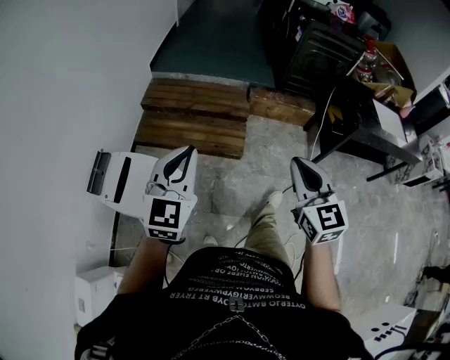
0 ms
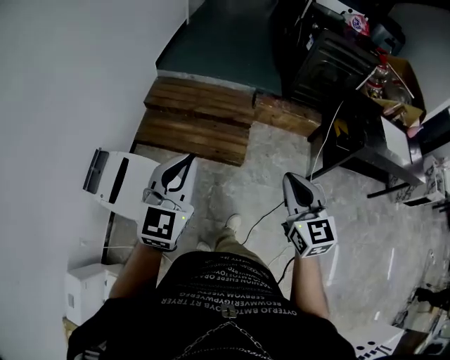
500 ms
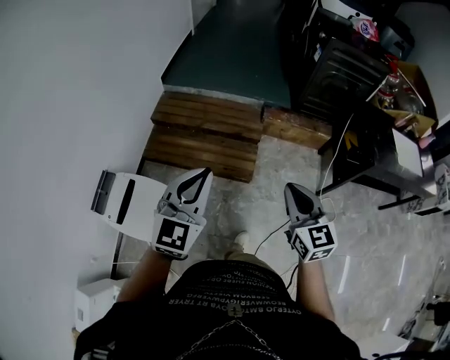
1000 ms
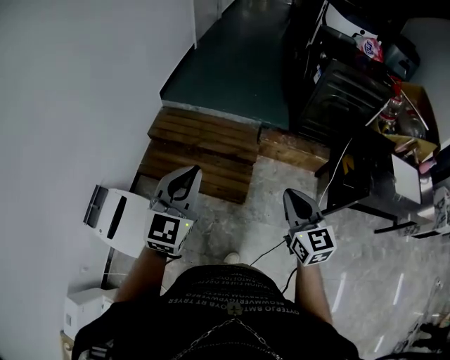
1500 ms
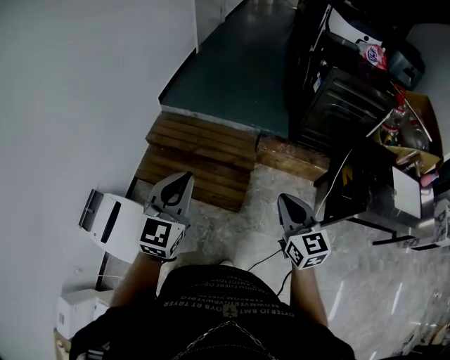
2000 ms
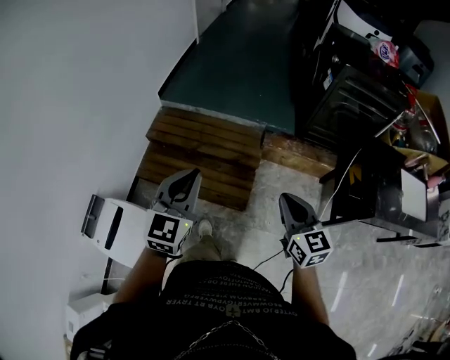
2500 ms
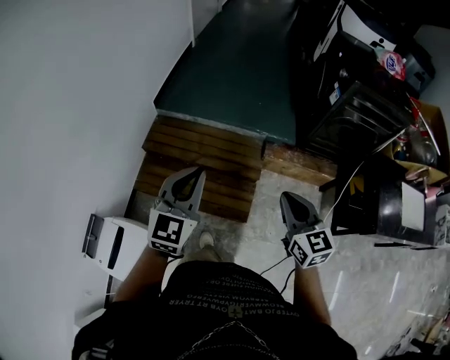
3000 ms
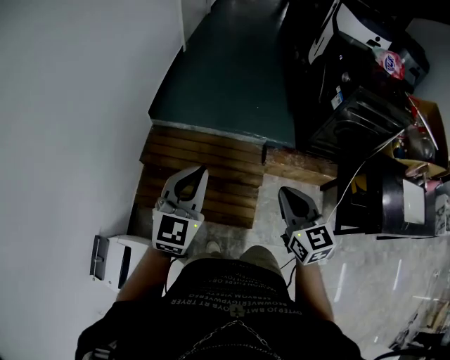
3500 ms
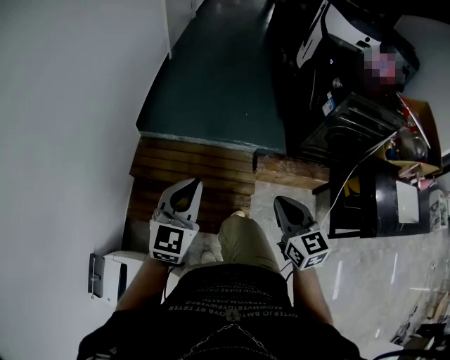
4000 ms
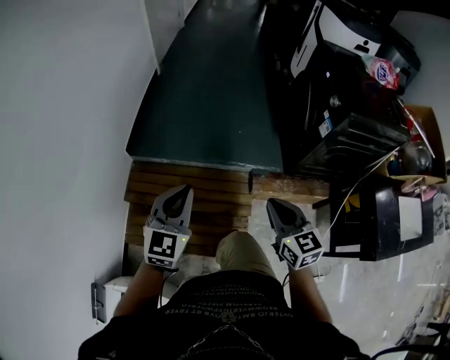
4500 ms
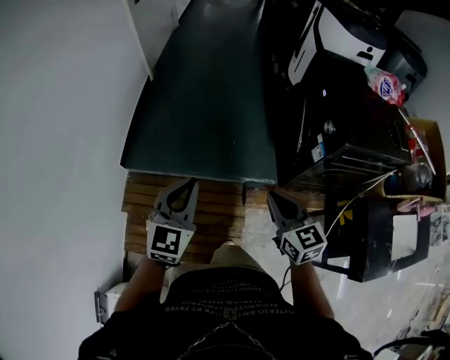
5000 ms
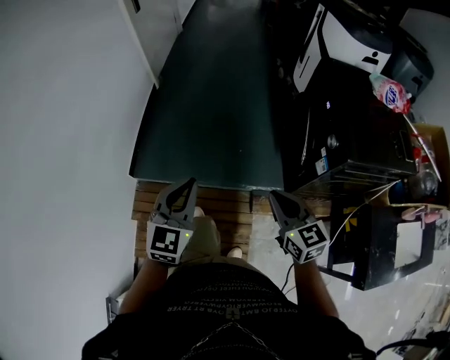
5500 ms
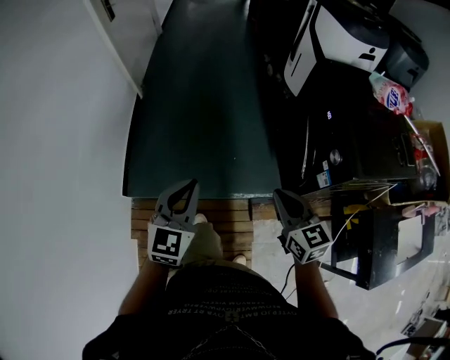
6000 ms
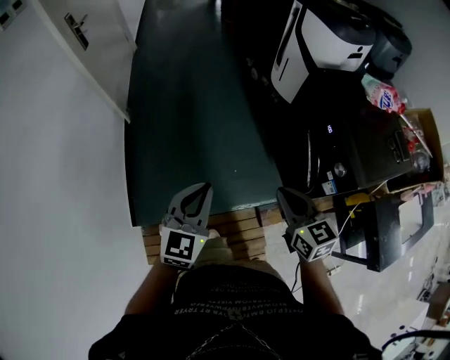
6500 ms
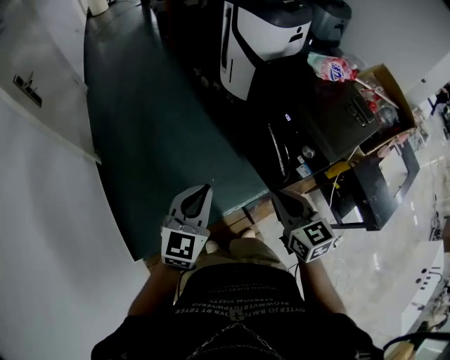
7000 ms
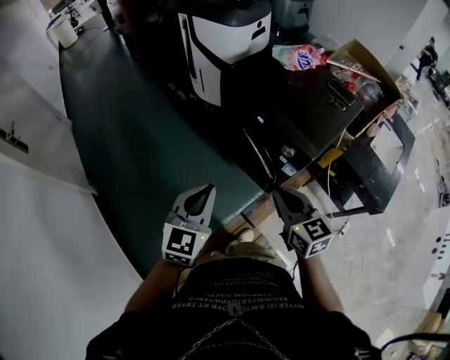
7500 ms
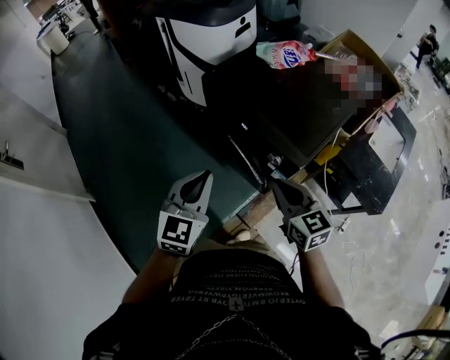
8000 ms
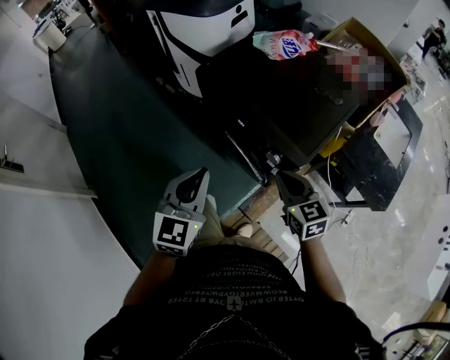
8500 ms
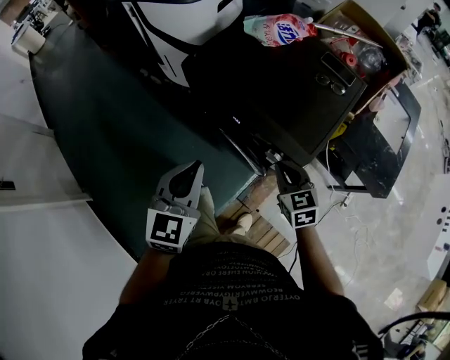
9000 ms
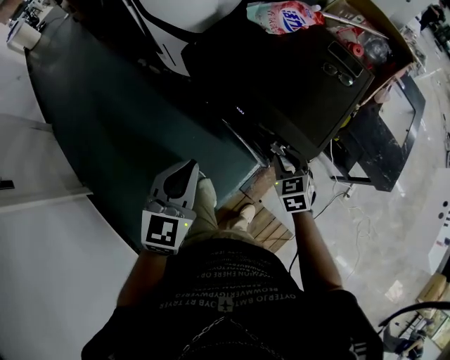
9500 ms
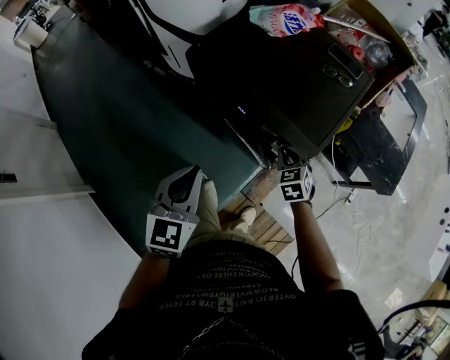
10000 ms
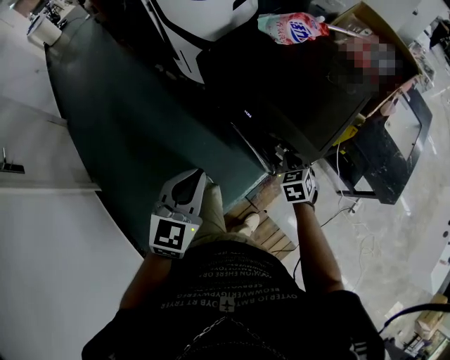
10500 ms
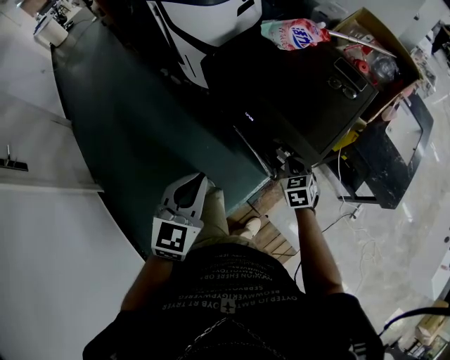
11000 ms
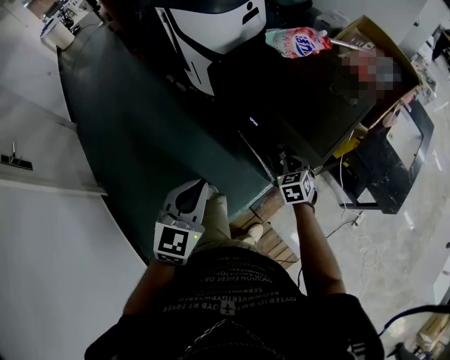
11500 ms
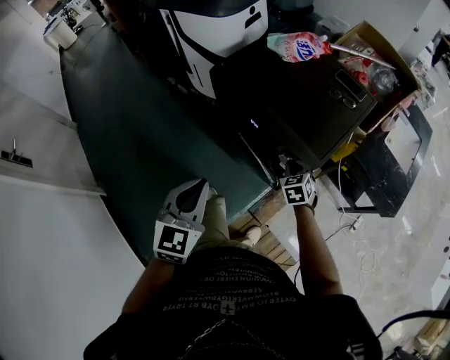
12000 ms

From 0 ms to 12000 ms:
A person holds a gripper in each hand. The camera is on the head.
From 0 ms to 2000 ms: Both grippers move forward and to the right, approximately 35 cm.
From 2000 ms to 4000 ms: The left gripper moves forward, roughly 35 cm, while the right gripper moves forward and to the left, approximately 35 cm.
From 4000 ms to 6000 ms: The pair of grippers is taken forward, approximately 50 cm.
From 6000 ms to 8000 ms: The right gripper shifts by approximately 25 cm, and turns by roughly 40 degrees, while the left gripper ends up some 35 cm from where it was, and turns by about 40 degrees.
From 8000 ms to 10000 ms: The left gripper is displaced forward and downward by roughly 10 cm, while the right gripper shifts some 25 cm downward and forward, and turns by about 40 degrees.
From 10000 ms to 12000 ms: The left gripper shifts approximately 5 cm backward.

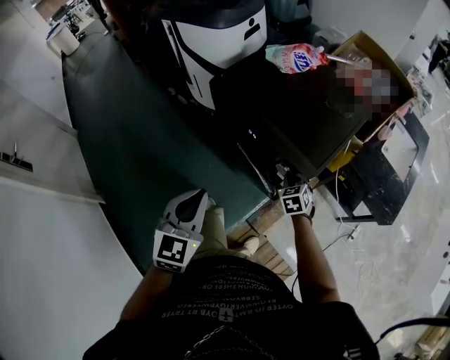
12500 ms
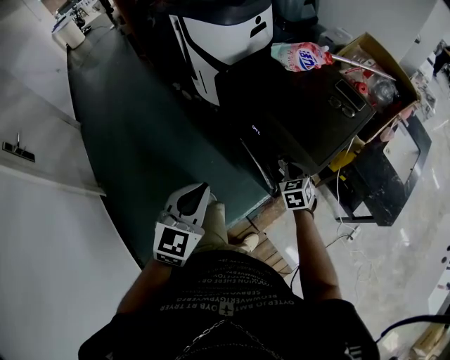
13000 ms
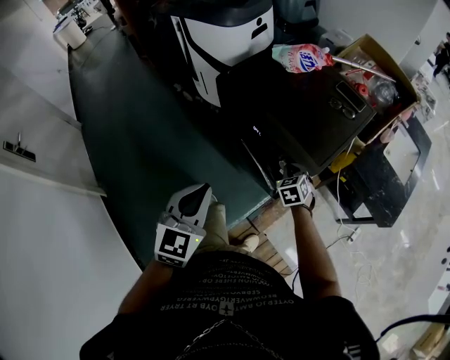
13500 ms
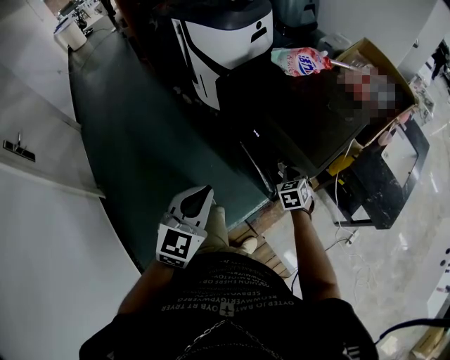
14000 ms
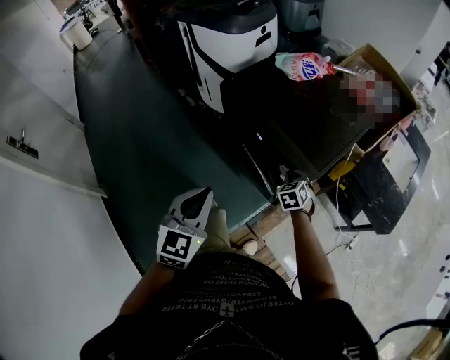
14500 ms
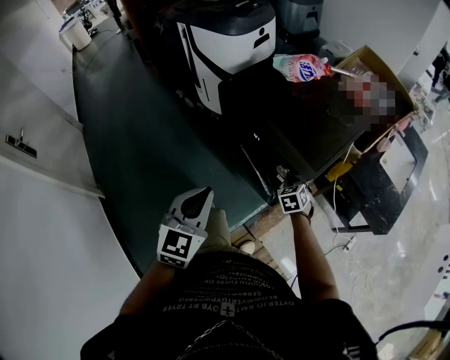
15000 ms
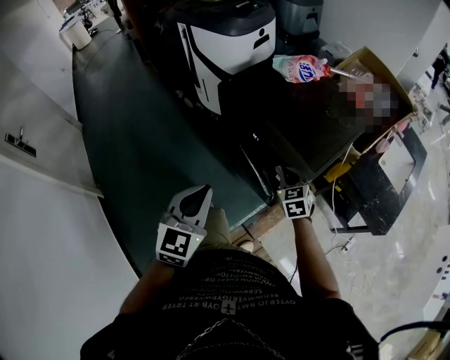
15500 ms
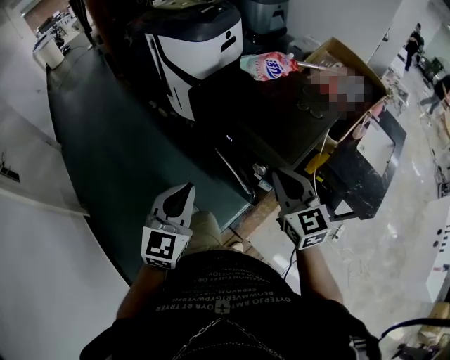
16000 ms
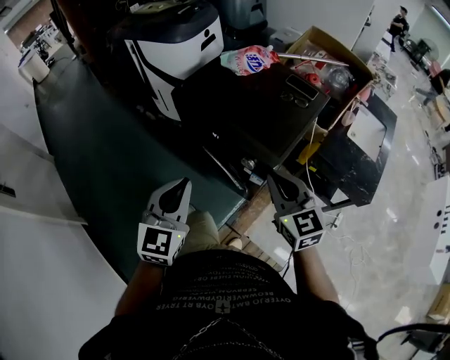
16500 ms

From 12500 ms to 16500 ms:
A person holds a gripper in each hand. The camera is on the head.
From 12500 ms to 14500 ms: The grippers stay close to where they were, moving slightly.
From 14500 ms to 16500 ms: The left gripper shifts some 5 cm to the right. The right gripper goes approximately 30 cm upward and backward, and tips its fingers upward by roughly 30 degrees.

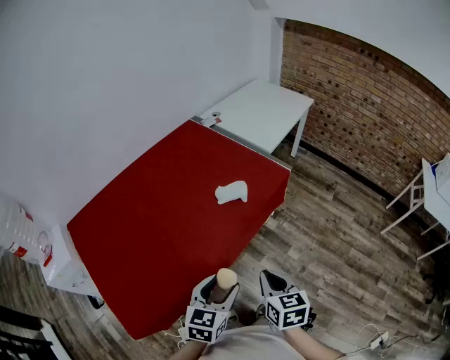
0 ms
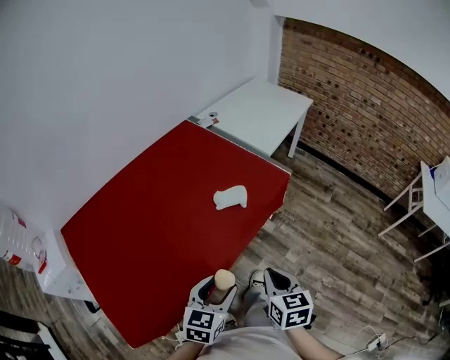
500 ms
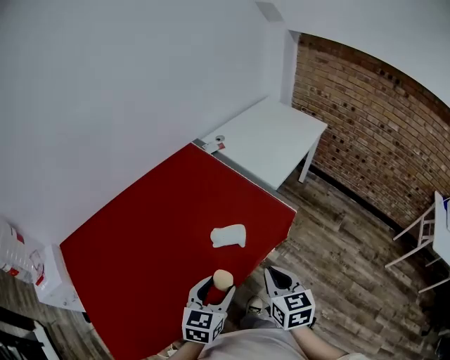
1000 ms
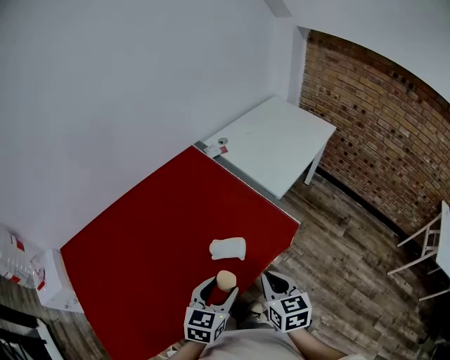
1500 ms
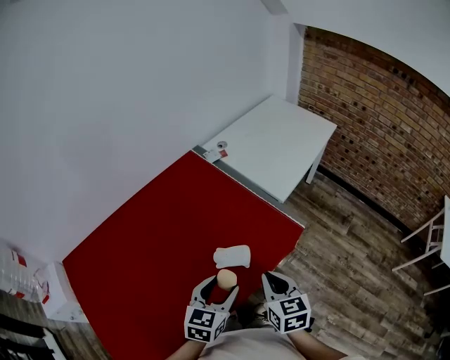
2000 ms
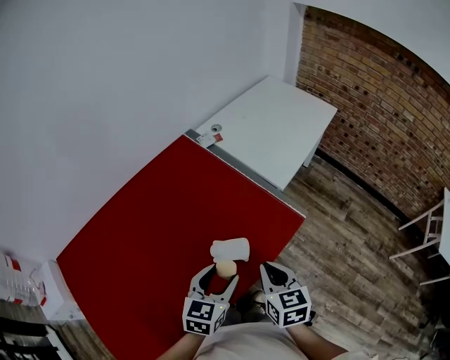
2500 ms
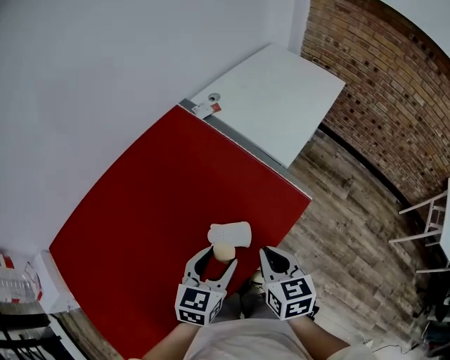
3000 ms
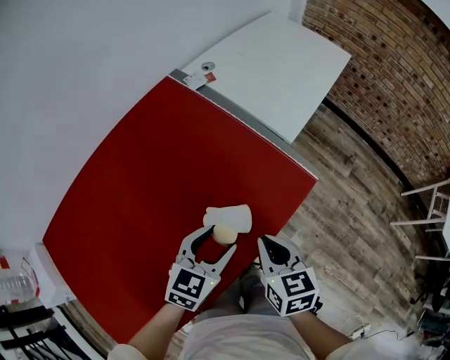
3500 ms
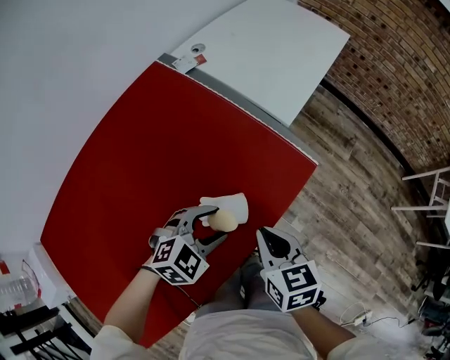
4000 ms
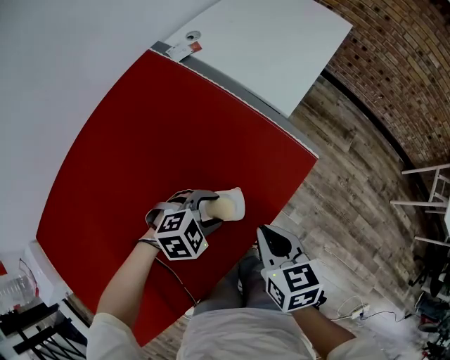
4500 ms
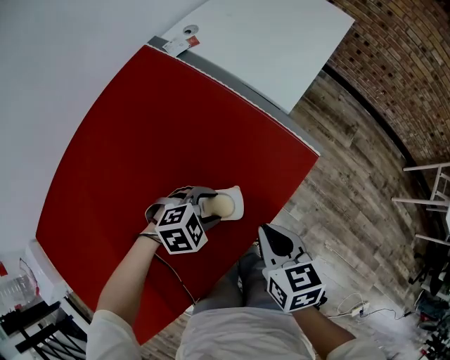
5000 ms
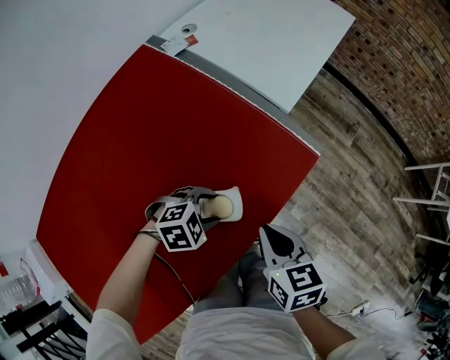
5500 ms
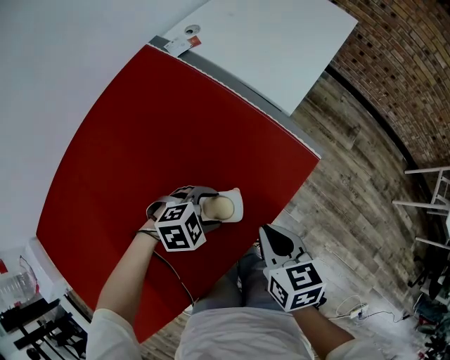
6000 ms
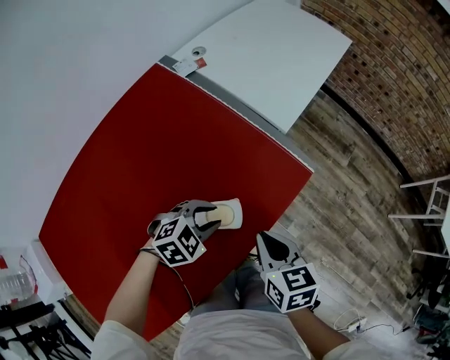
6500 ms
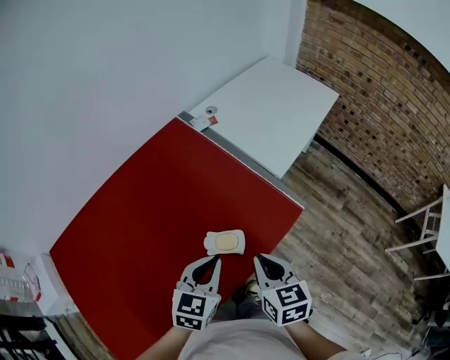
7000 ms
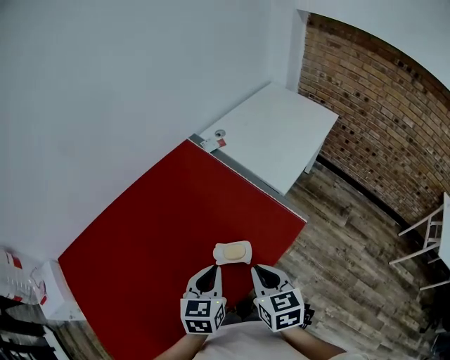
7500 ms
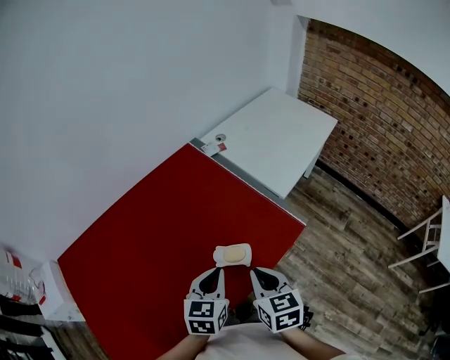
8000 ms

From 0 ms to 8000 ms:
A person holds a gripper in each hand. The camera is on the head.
From 0 ms to 2000 ms: Both grippers move forward, roughly 35 cm.
From 2000 ms to 4000 ms: Both grippers move downward and forward, some 15 cm. The left gripper rotates approximately 50 degrees.
From 4000 ms to 6000 ms: The left gripper shifts roughly 10 cm downward, and changes its angle by some 20 degrees.
From 6000 ms to 8000 ms: The left gripper heads upward, covering roughly 25 cm, changes its angle by approximately 80 degrees, and closes up. Meanwhile the right gripper heads upward, covering roughly 15 cm.

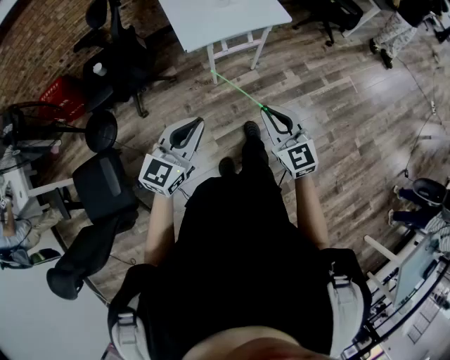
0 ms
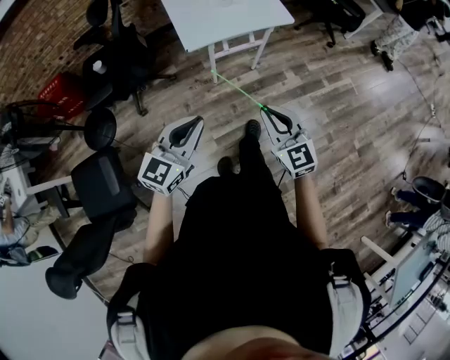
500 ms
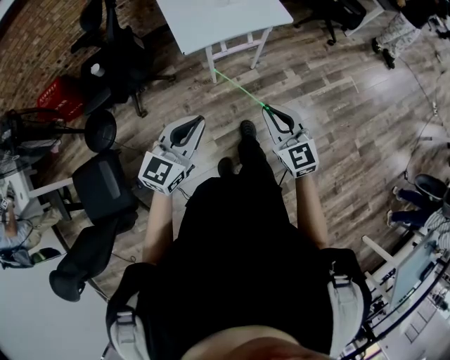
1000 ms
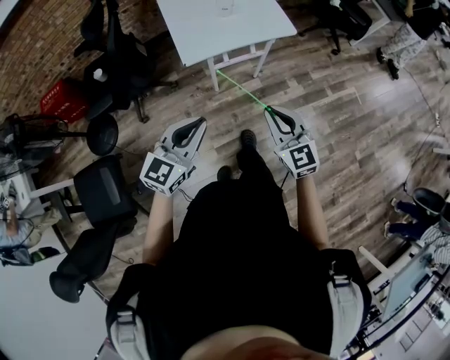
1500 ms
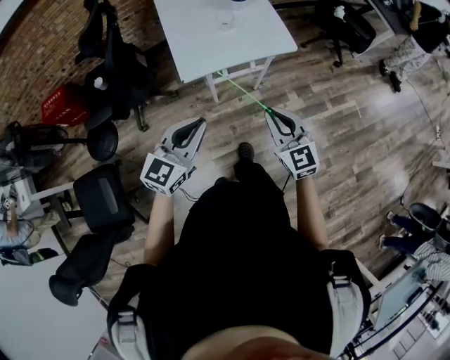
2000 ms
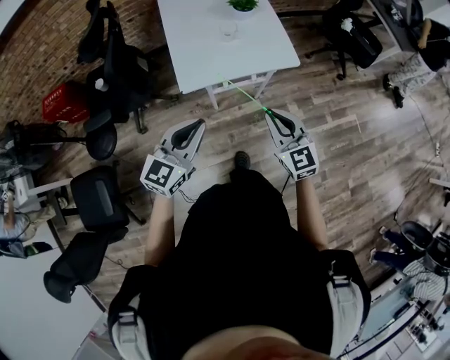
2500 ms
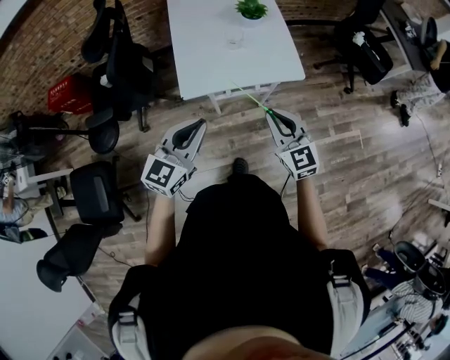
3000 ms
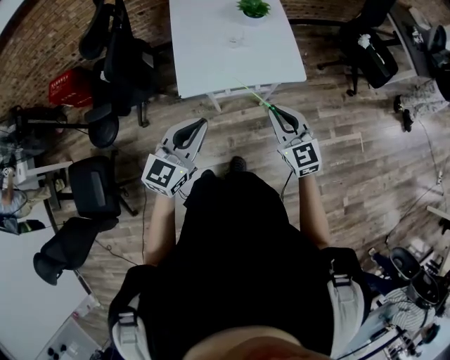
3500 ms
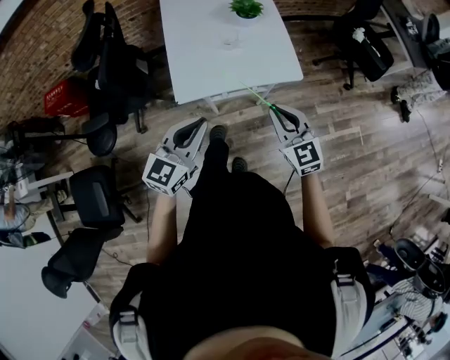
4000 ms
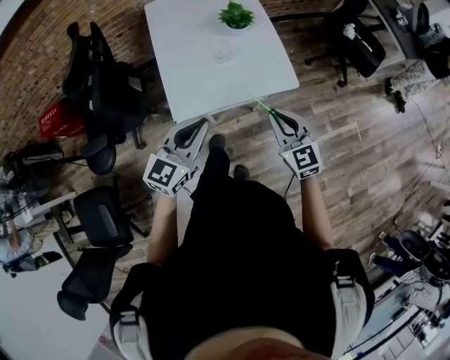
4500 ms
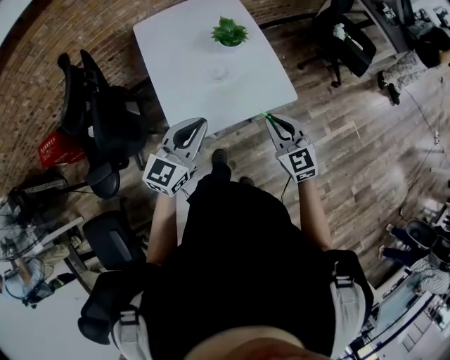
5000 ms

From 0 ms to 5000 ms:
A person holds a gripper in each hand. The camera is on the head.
From 0 ms to 2500 ms: Both grippers move forward, about 25 cm.
From 2500 ms to 5000 ms: Both grippers move forward, about 25 cm.
